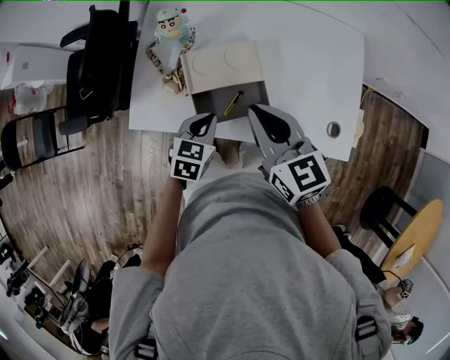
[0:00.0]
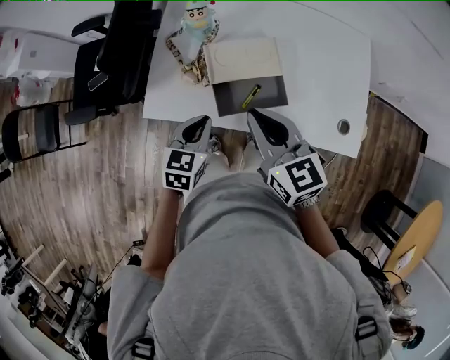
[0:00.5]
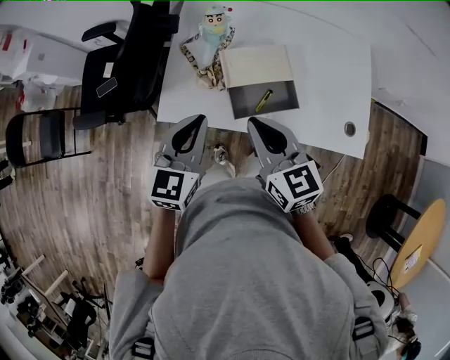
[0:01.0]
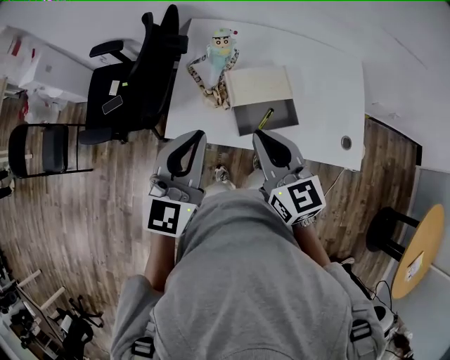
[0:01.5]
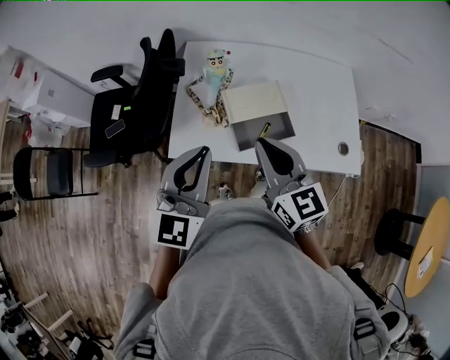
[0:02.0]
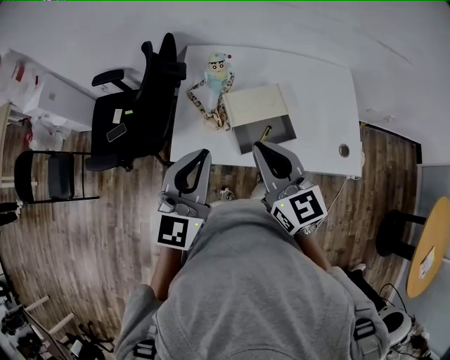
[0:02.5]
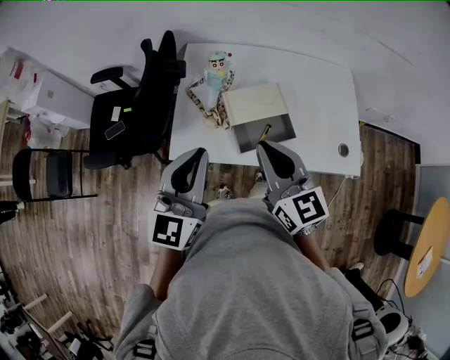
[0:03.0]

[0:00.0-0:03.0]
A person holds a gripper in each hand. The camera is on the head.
0:00.0 to 0:01.5: The right gripper shifts approximately 15 cm to the left and backward; the left gripper is displaced upward and to the left by some 30 cm, and tips its fingers upward by roughly 40 degrees.
0:01.5 to 0:03.0: The grippers stay close to where they were, moving slightly.

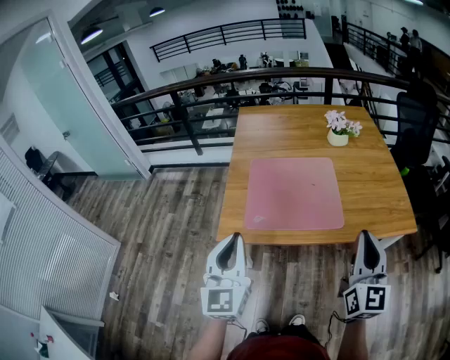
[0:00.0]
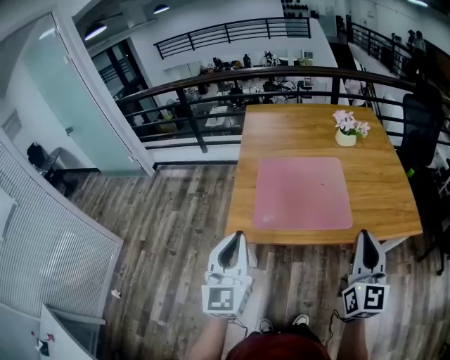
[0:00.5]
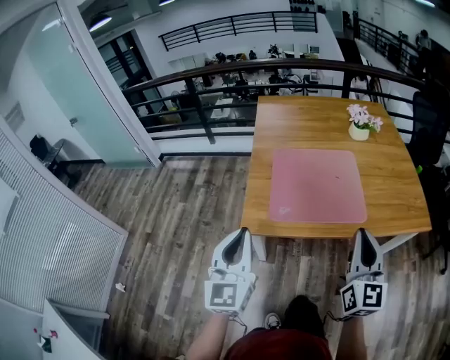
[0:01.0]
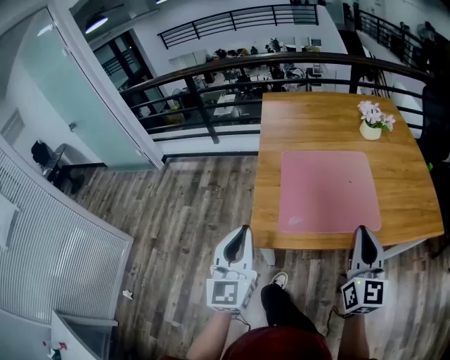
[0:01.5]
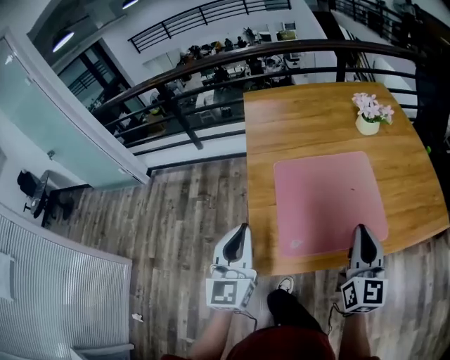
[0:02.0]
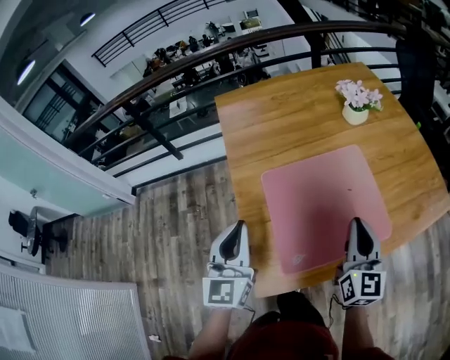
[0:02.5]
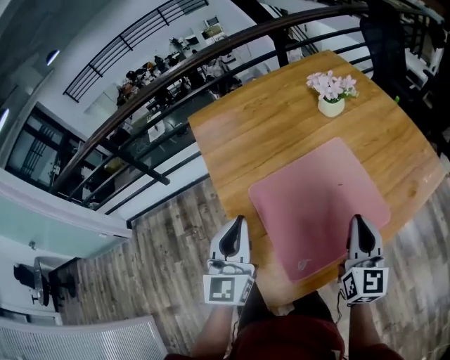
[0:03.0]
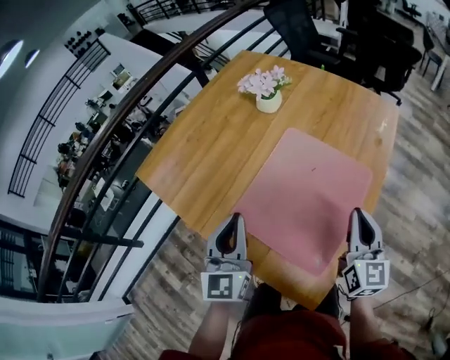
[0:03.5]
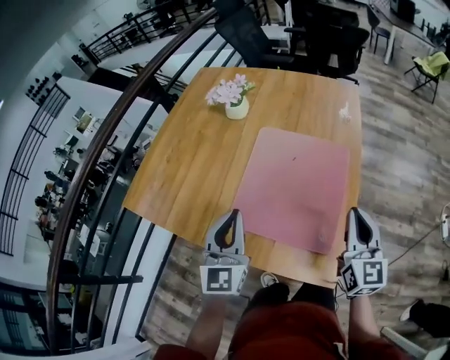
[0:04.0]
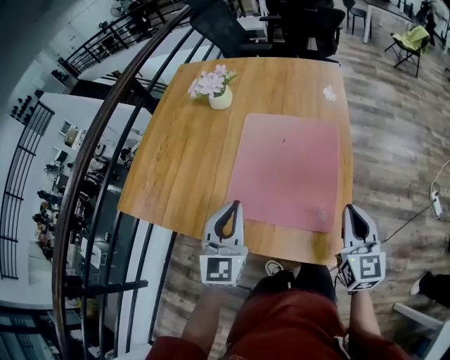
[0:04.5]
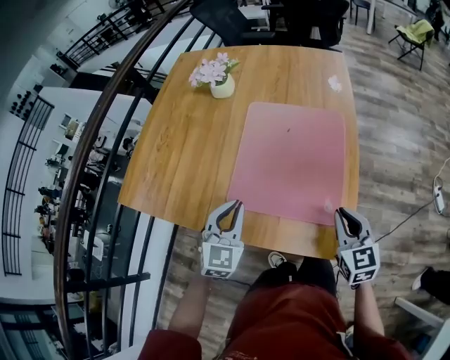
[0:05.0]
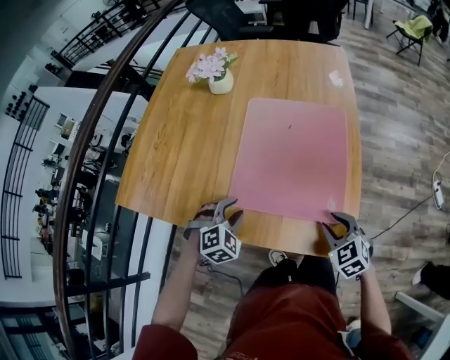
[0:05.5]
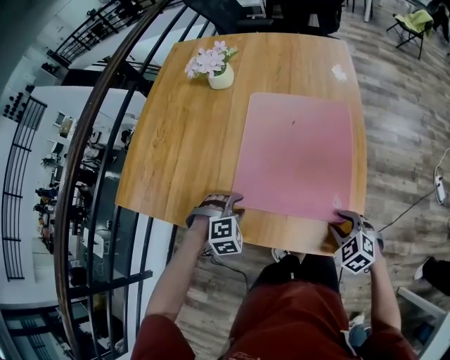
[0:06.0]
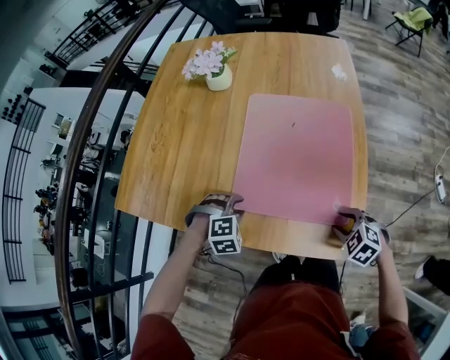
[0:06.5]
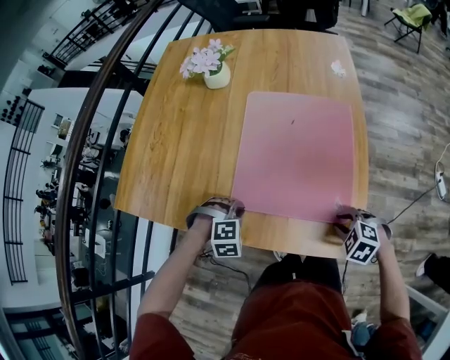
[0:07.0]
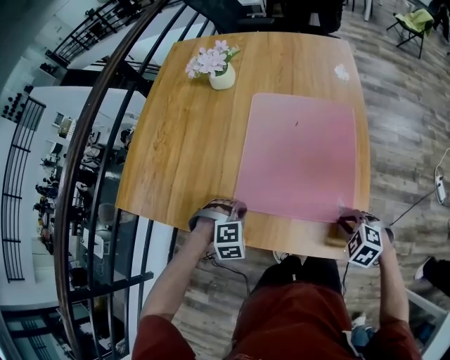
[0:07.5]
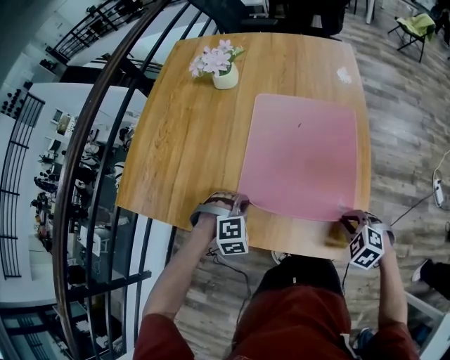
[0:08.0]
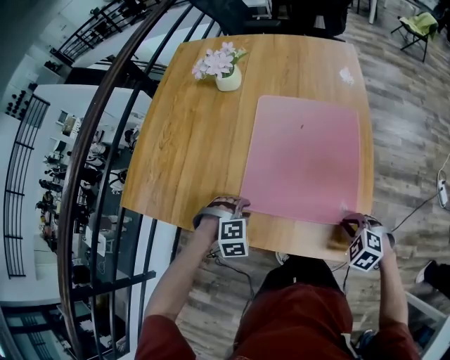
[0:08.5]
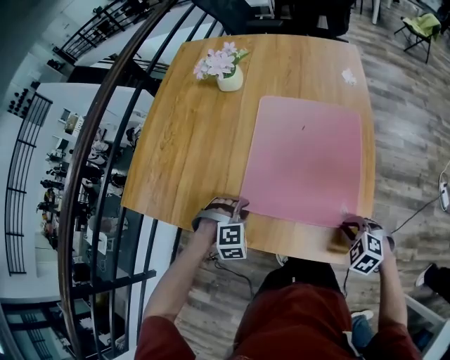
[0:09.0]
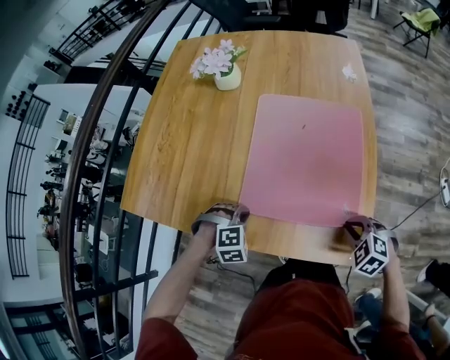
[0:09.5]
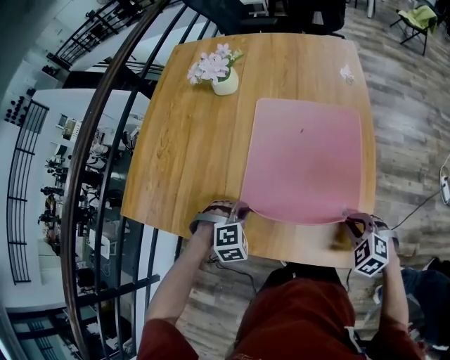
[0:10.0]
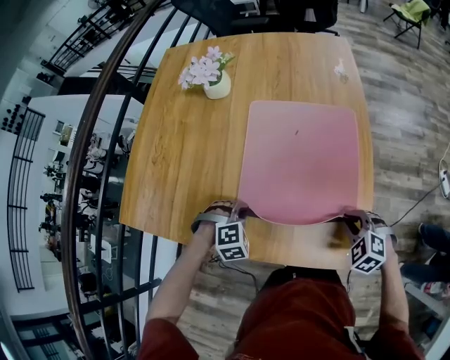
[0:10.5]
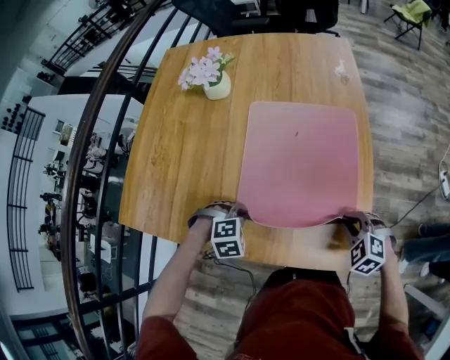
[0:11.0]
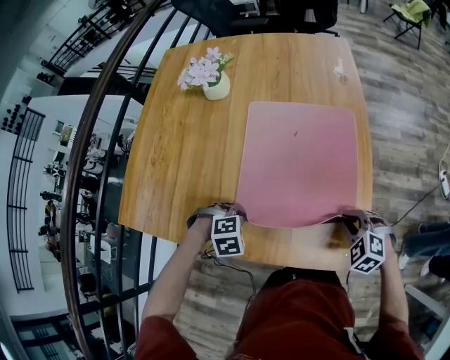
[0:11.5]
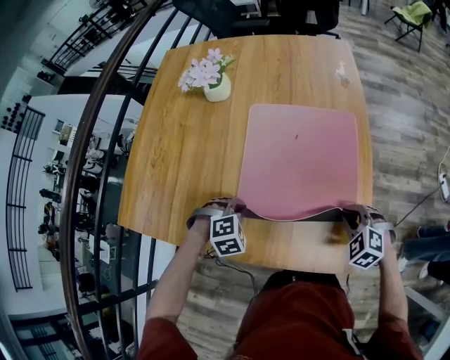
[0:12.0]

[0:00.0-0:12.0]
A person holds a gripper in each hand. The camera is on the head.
0:00.0 to 0:02.0: The left gripper travels forward and to the left by about 30 cm, while the right gripper goes roughly 30 cm forward, to the left and downward.
0:02.0 to 0:04.0: The right gripper ends up roughly 10 cm from where it was, and rotates roughly 60 degrees. Meanwhile the left gripper ends up approximately 30 cm from where it was, and swivels some 70 degrees.
0:04.0 to 0:06.0: The grippers both shift downward by some 25 cm. The left gripper angles its fingers downward, by some 60 degrees, and opens up. Meanwhile the right gripper tilts its fingers about 50 degrees downward, and opens up.
0:06.0 to 0:08.0: The left gripper closes up. Meanwhile the right gripper closes.
0:08.0 to 0:10.0: The left gripper opens, then closes again.
0:10.0 to 0:12.0: The right gripper moves some 5 cm.

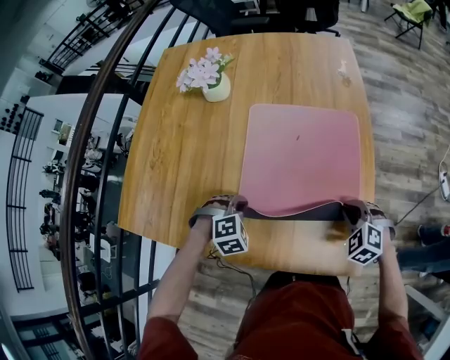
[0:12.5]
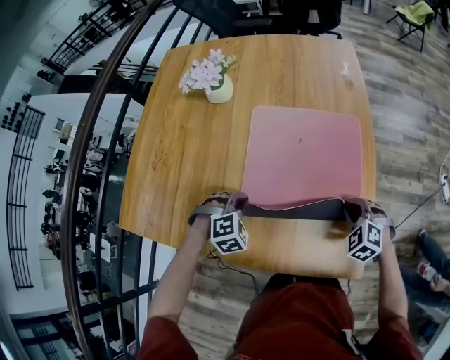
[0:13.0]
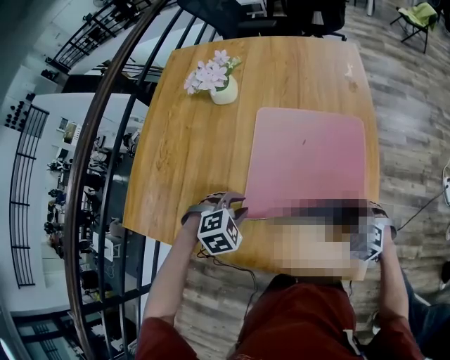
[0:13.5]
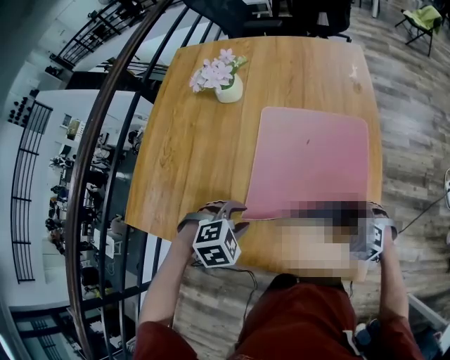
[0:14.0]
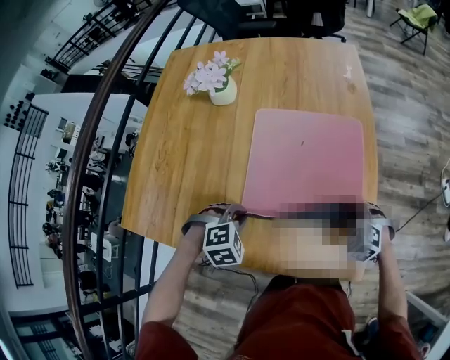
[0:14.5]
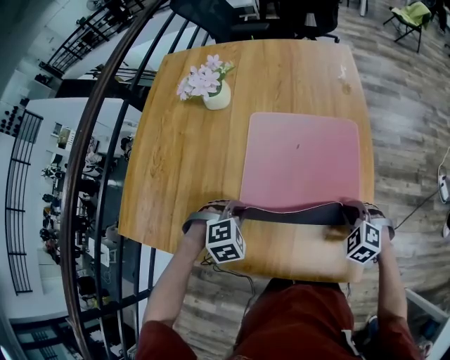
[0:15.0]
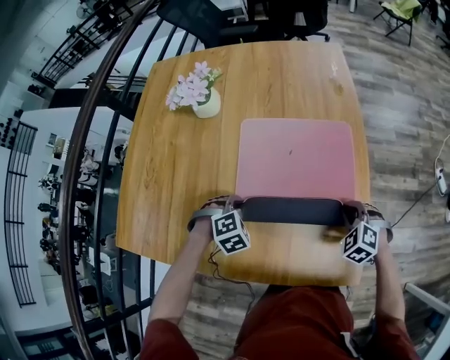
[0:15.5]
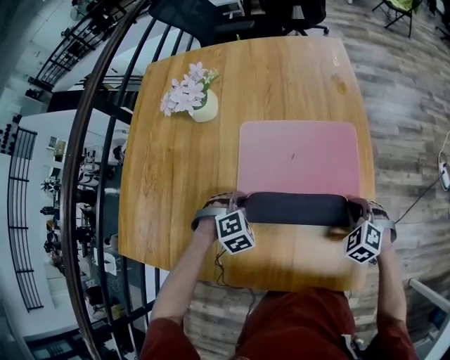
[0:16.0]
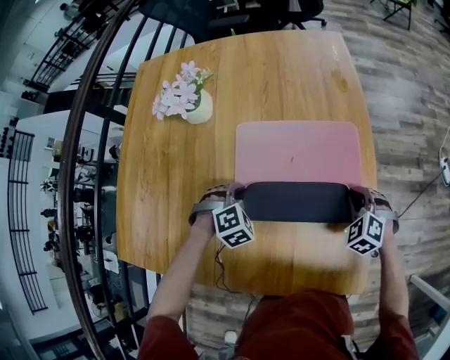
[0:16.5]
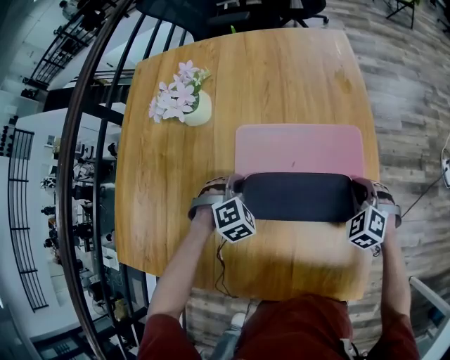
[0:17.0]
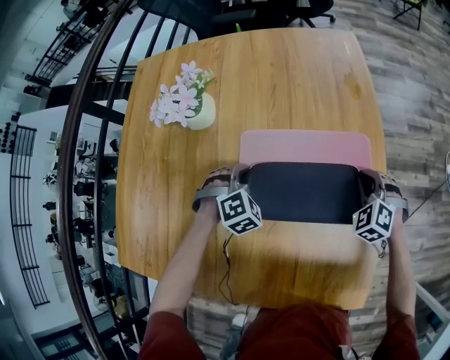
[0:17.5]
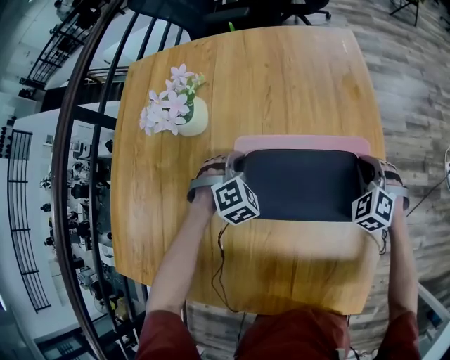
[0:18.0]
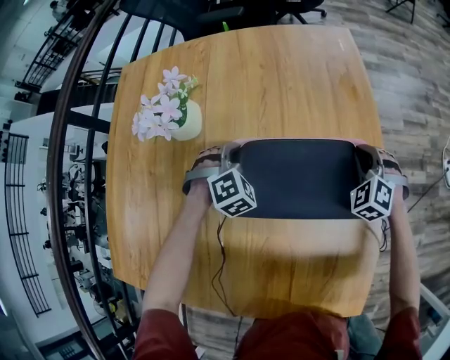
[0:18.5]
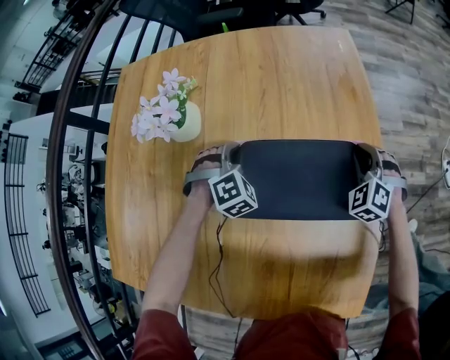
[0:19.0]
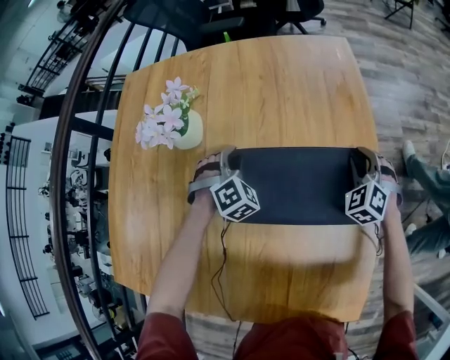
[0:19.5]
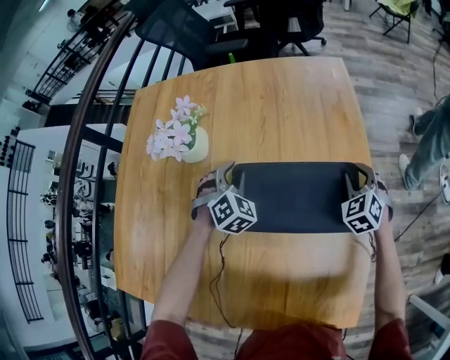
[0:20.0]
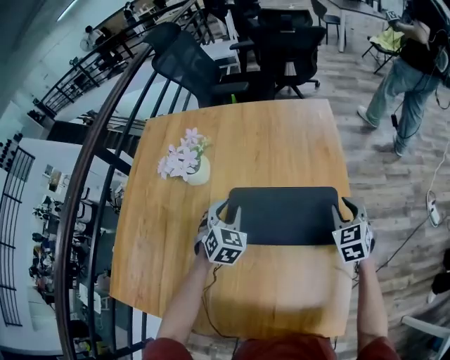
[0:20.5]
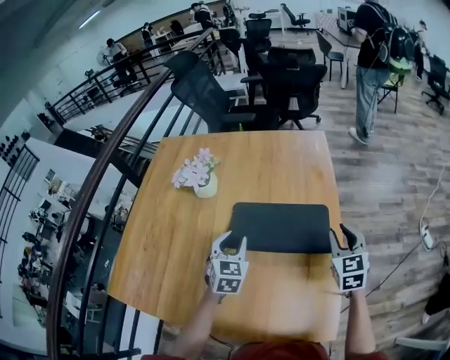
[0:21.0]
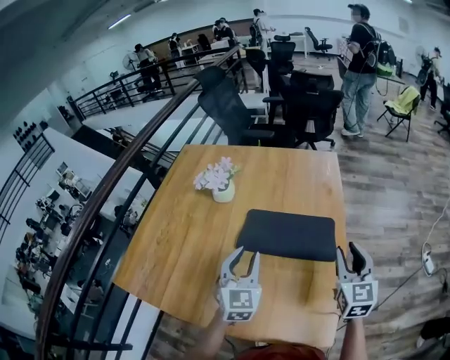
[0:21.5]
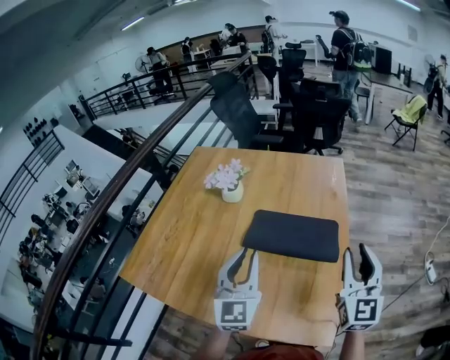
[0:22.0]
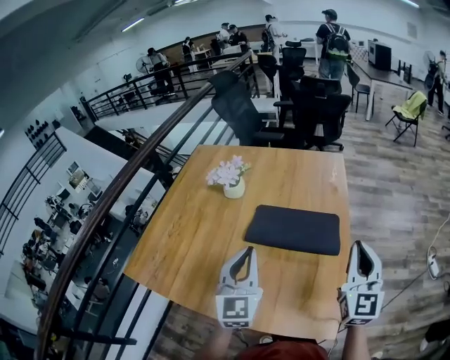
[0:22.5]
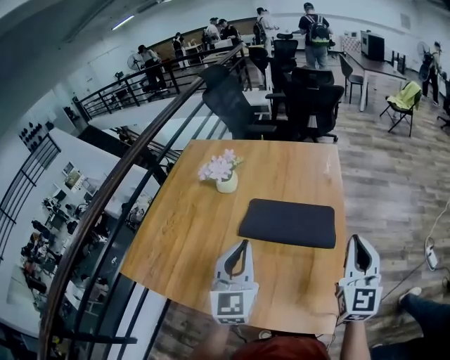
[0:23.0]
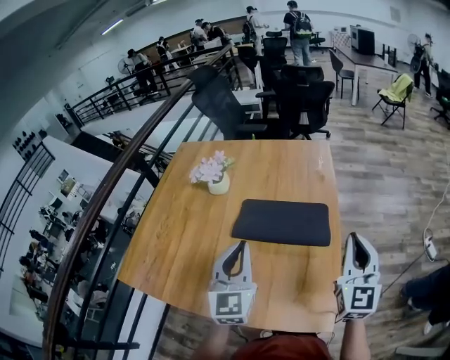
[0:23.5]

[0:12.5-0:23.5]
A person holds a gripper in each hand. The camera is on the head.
0:12.5 to 0:14.5: The left gripper opens and closes again.
0:14.5 to 0:16.0: The left gripper heads forward and downward, covering approximately 15 cm, while the right gripper travels forward by some 5 cm.
0:16.0 to 0:18.0: Both grippers move forward, about 20 cm.
0:18.0 to 0:20.0: The right gripper opens its fingers; the left gripper travels upward by about 5 cm, and opens.
0:20.0 to 0:21.5: The left gripper travels backward and upward by approximately 35 cm, and angles its fingers upward, by about 30 degrees; the right gripper heads upward and backward, covering roughly 35 cm, and points its fingers roughly 30 degrees further upward.
0:21.5 to 0:23.5: Both grippers move upward and backward, about 10 cm. The left gripper closes up. The right gripper closes.

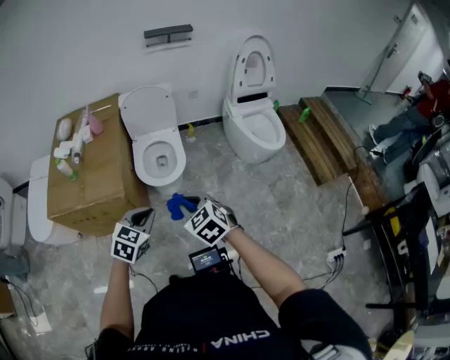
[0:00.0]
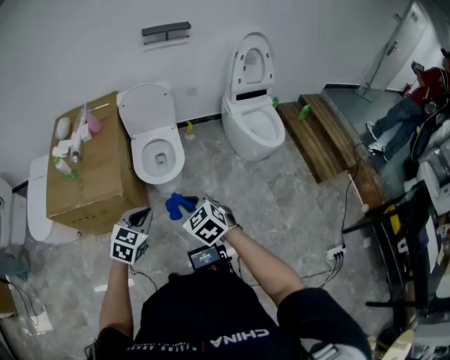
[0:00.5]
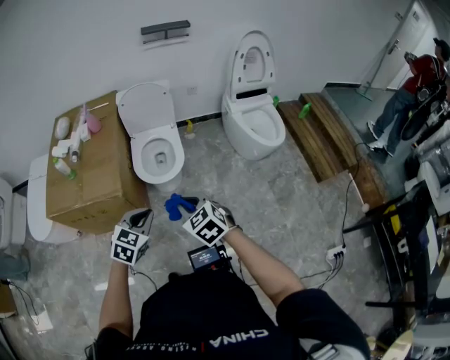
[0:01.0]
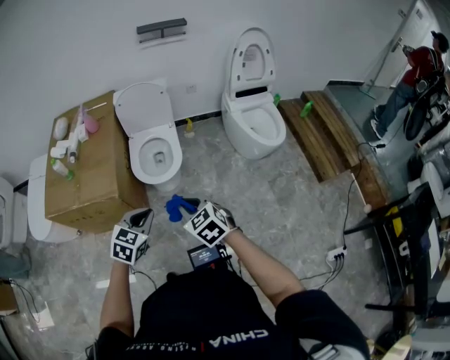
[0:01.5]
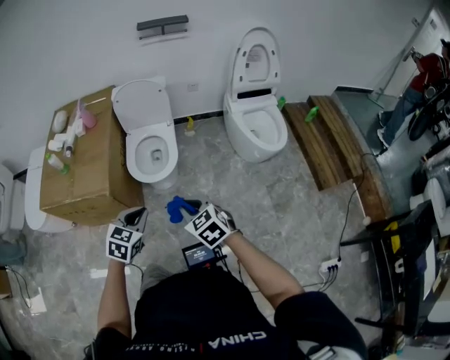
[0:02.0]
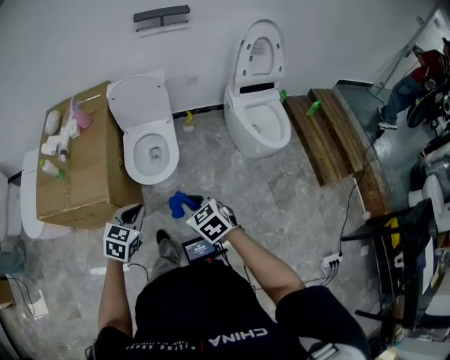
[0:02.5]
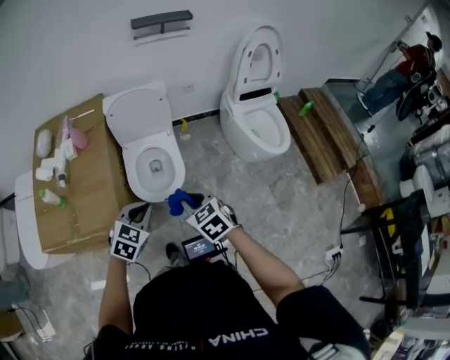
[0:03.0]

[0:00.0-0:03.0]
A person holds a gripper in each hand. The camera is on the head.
0:00.0 to 0:01.5: There are only small adjustments of the grippers.
0:01.5 to 0:03.0: The two grippers go approximately 20 cm forward.
